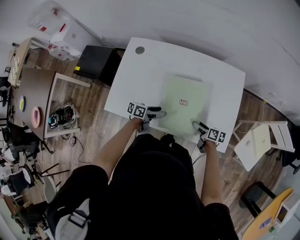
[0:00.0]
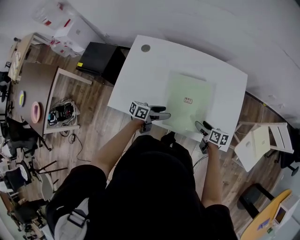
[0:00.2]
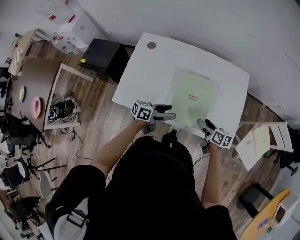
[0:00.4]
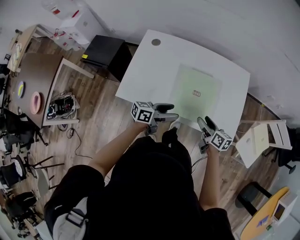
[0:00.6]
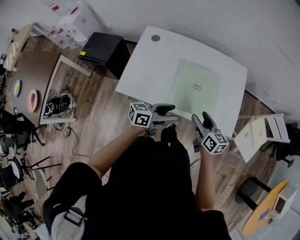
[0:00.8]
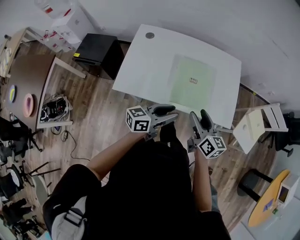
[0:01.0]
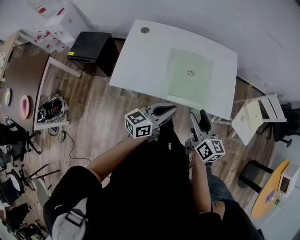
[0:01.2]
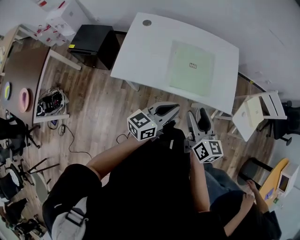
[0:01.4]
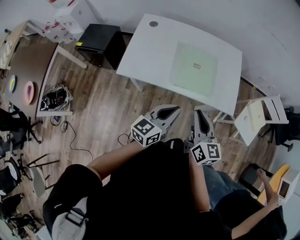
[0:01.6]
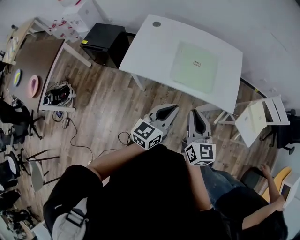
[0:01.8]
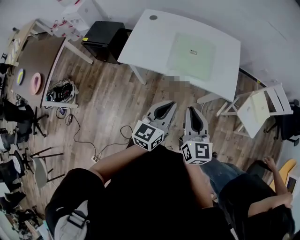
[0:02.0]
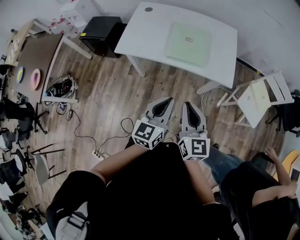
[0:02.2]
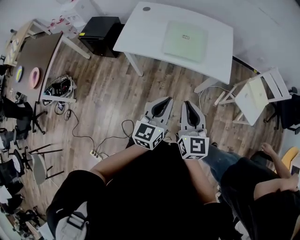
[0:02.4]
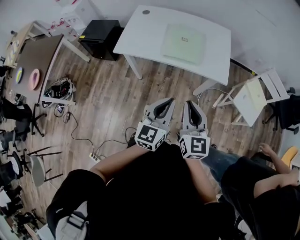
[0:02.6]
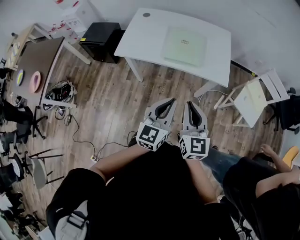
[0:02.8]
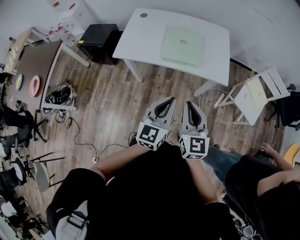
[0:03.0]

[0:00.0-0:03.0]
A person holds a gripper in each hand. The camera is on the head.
0:00.0 to 0:01.6: The left gripper is displaced backward and upward by approximately 35 cm, changes its angle by some 40 degrees, and closes its fingers. The right gripper is displaced upward and backward by about 40 cm, turns by some 50 degrees, and closes.
0:01.6 to 0:03.0: The left gripper moves backward and to the right, approximately 15 cm, and rotates approximately 20 degrees; the right gripper goes approximately 15 cm backward.

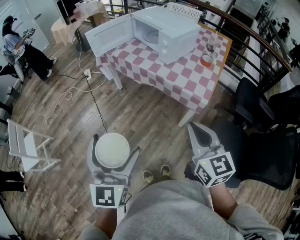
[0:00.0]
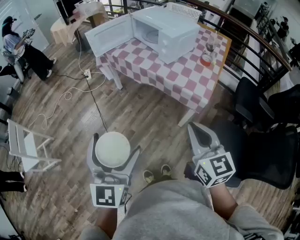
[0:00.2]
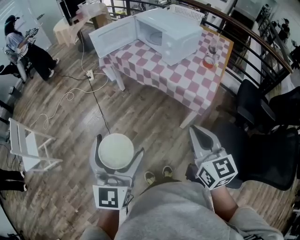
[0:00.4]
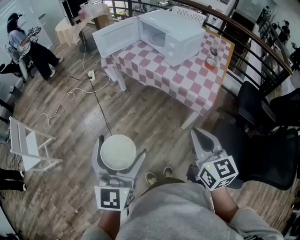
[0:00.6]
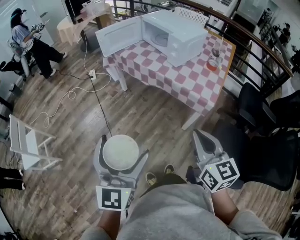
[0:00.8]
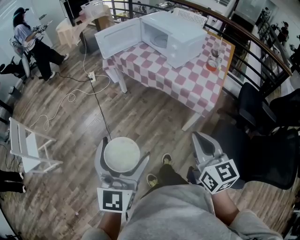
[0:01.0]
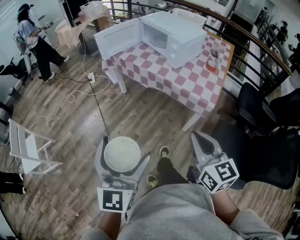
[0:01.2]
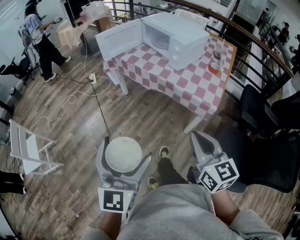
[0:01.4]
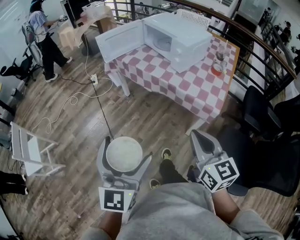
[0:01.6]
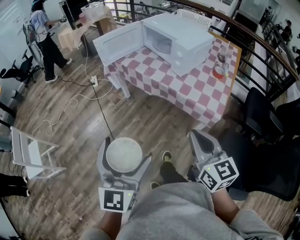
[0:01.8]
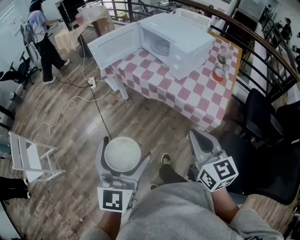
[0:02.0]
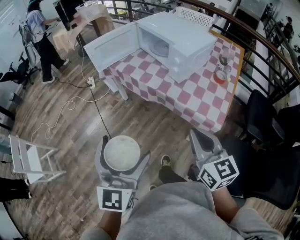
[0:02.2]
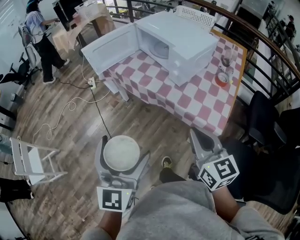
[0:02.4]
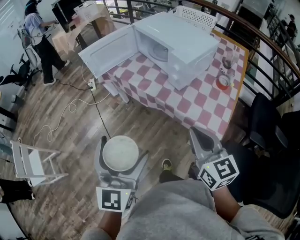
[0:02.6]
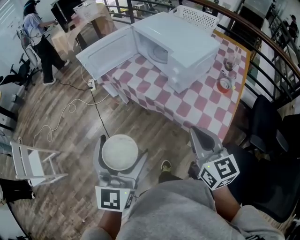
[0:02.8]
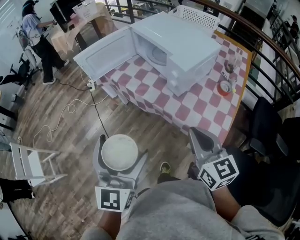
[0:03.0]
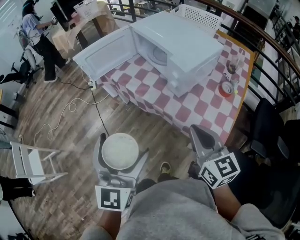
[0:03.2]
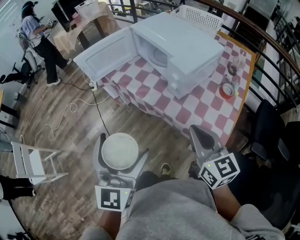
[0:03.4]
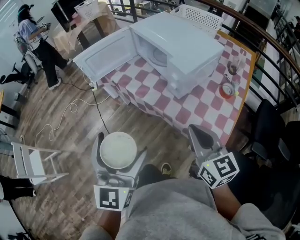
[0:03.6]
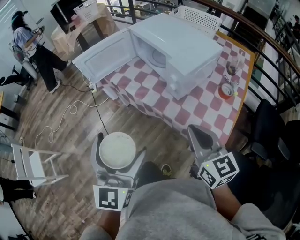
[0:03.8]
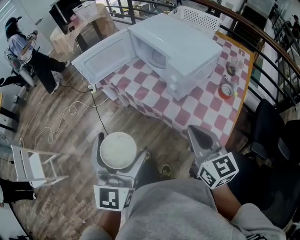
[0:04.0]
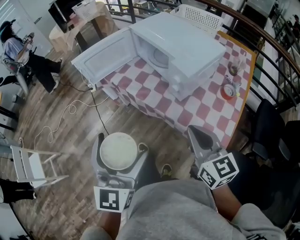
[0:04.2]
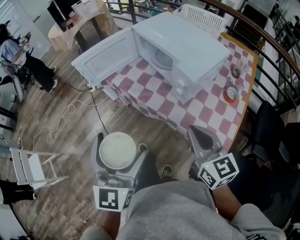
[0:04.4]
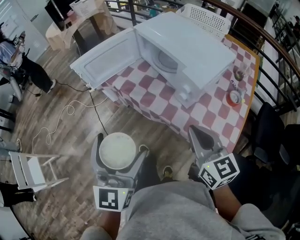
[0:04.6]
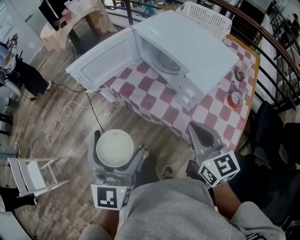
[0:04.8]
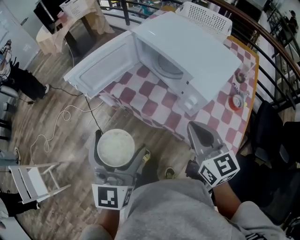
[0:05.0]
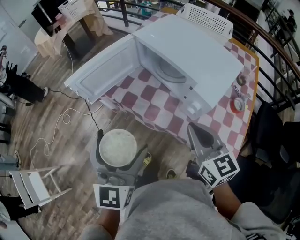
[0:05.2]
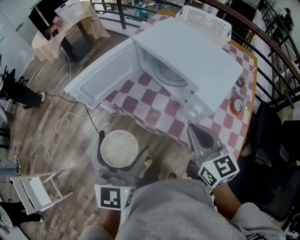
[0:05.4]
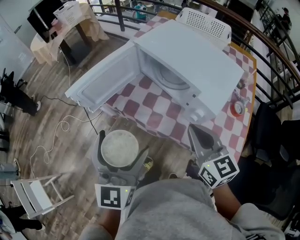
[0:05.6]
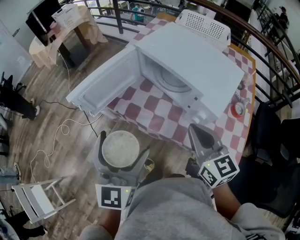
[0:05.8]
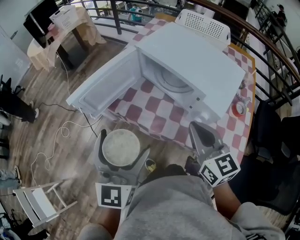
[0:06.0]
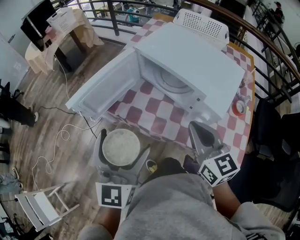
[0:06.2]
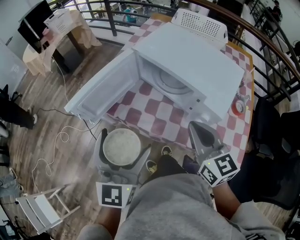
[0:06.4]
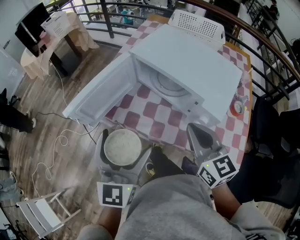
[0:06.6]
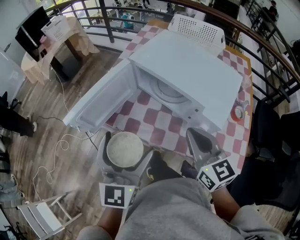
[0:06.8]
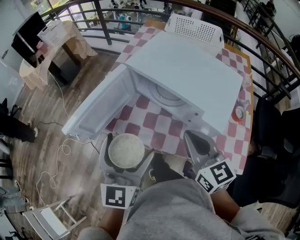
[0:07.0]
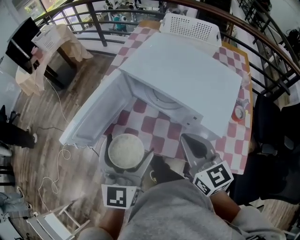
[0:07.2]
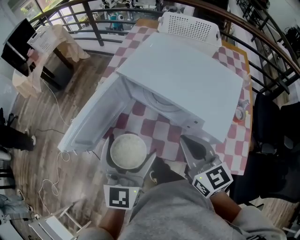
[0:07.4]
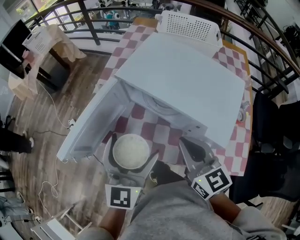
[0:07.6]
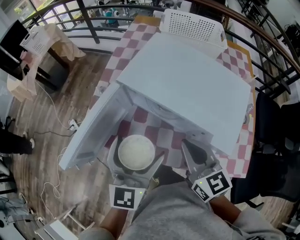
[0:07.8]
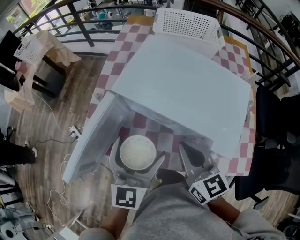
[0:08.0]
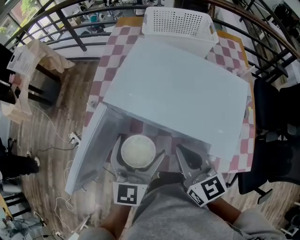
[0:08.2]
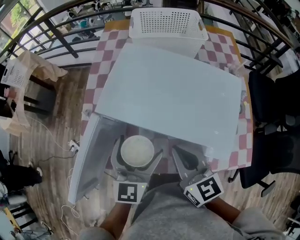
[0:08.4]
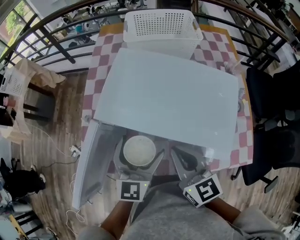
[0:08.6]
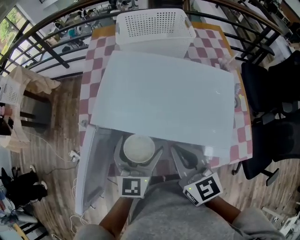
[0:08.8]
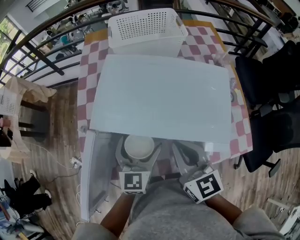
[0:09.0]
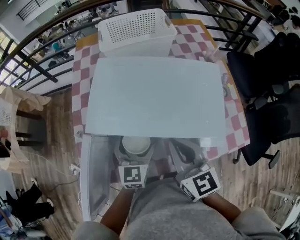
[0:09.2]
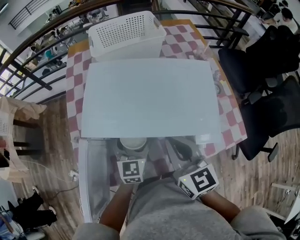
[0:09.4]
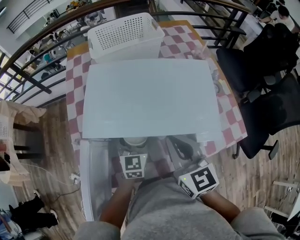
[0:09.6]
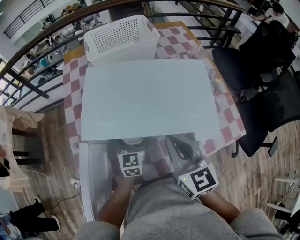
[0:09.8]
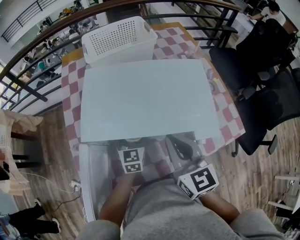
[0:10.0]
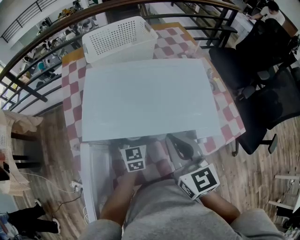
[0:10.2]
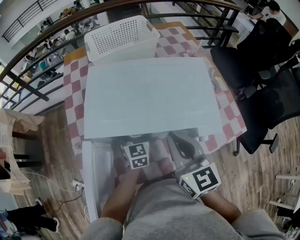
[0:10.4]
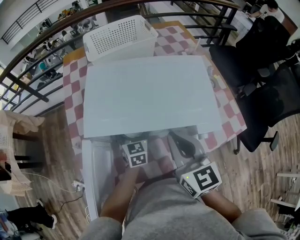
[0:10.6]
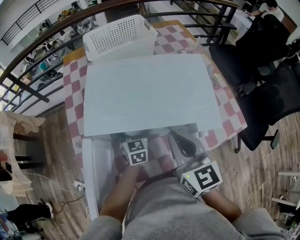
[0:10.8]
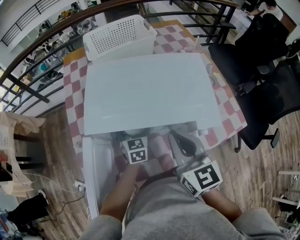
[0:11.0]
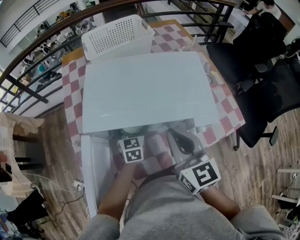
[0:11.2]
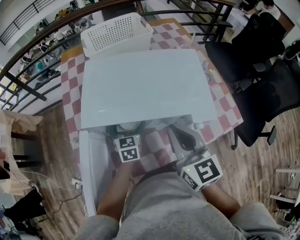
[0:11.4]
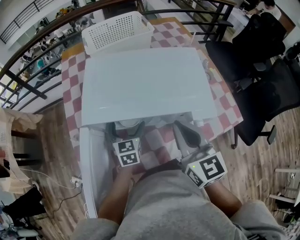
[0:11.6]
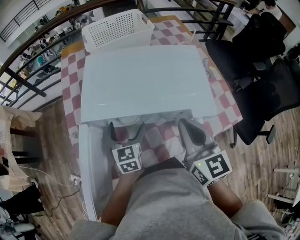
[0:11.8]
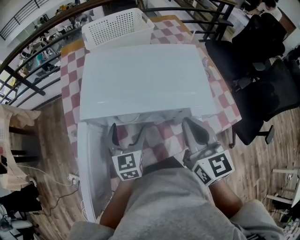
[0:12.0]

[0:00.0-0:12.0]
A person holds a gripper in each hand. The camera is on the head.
0:00.0 to 0:01.6: The right gripper shifts about 5 cm to the left.
0:01.6 to 0:03.0: Both grippers travel together forward, some 25 cm.
0:03.0 to 0:04.4: The grippers both shift forward by roughly 5 cm.
0:04.4 to 0:06.0: The right gripper is displaced forward and to the left by roughly 20 cm. The left gripper is displaced forward by about 20 cm.
0:06.0 to 0:07.6: The left gripper travels forward by some 15 cm. Meanwhile the right gripper shifts roughly 10 cm forward.
0:07.6 to 0:09.0: The right gripper moves forward, approximately 5 cm, and rotates roughly 20 degrees. The left gripper travels forward and downward by some 15 cm, and turns by approximately 20 degrees.
0:09.0 to 0:10.4: The left gripper heads downward and forward, covering roughly 10 cm.
0:10.4 to 0:12.0: The left gripper travels backward and upward by about 10 cm, while the right gripper is displaced to the right by roughly 5 cm.

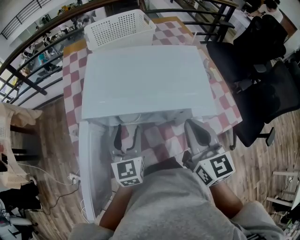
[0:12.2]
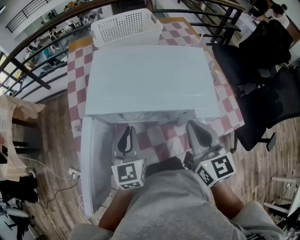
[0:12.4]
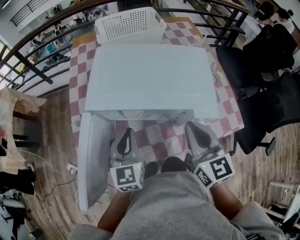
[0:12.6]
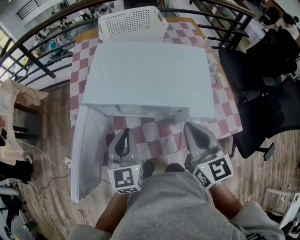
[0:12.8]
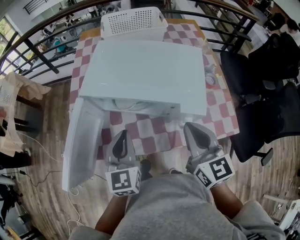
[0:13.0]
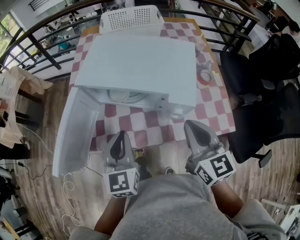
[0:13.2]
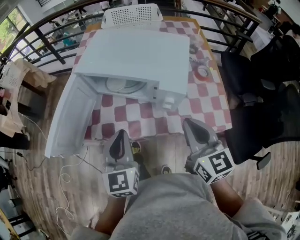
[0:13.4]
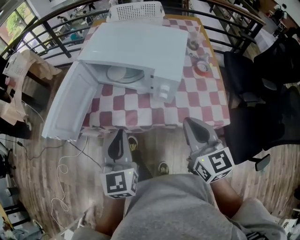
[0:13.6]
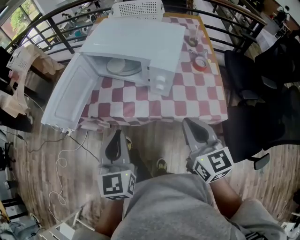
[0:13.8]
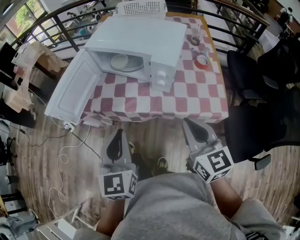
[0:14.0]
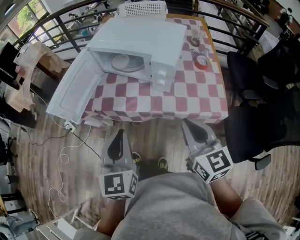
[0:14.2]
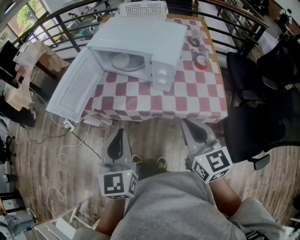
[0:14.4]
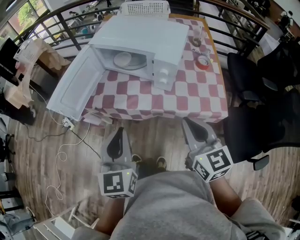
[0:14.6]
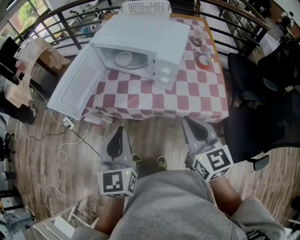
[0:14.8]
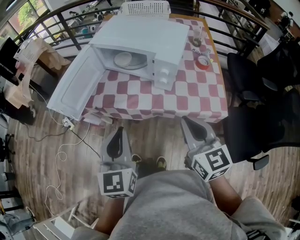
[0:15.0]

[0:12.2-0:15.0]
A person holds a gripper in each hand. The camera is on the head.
0:12.2 to 0:13.6: The left gripper goes roughly 25 cm backward, and closes, while the right gripper travels backward and to the right by about 20 cm, and swivels approximately 20 degrees.
0:13.6 to 0:15.0: Both grippers move backward, some 10 cm.

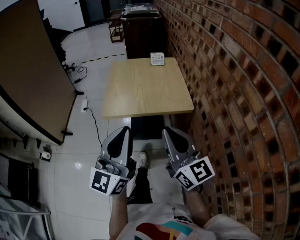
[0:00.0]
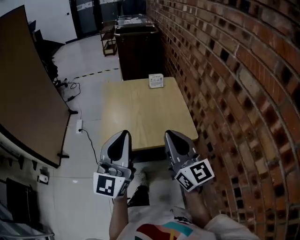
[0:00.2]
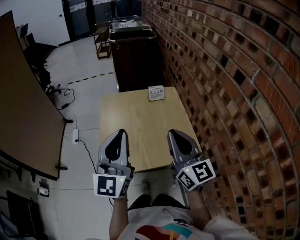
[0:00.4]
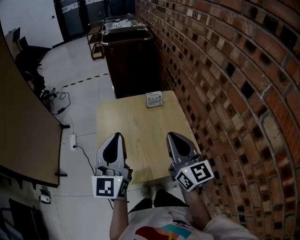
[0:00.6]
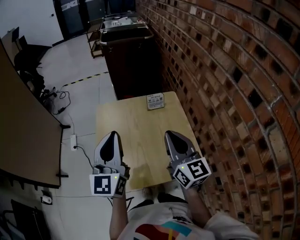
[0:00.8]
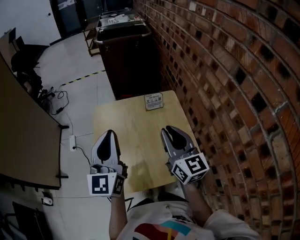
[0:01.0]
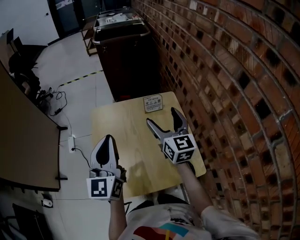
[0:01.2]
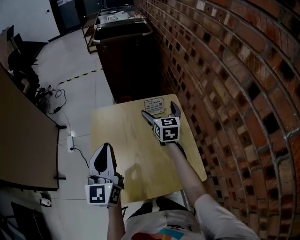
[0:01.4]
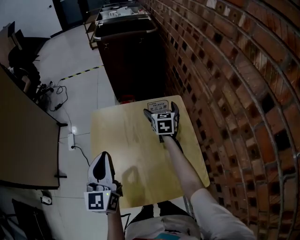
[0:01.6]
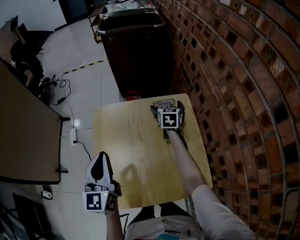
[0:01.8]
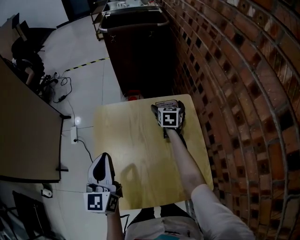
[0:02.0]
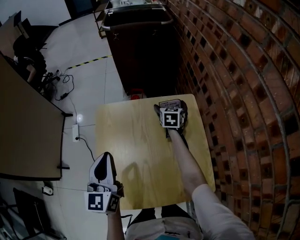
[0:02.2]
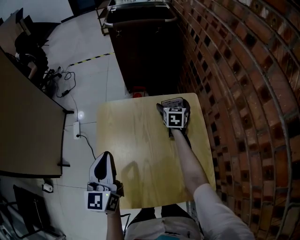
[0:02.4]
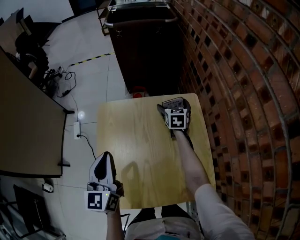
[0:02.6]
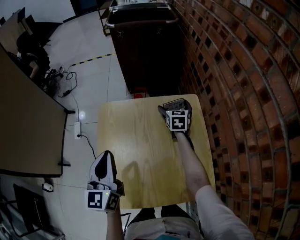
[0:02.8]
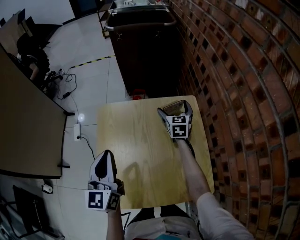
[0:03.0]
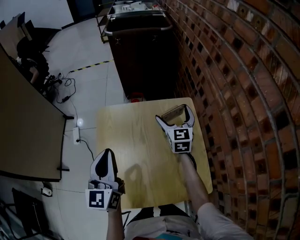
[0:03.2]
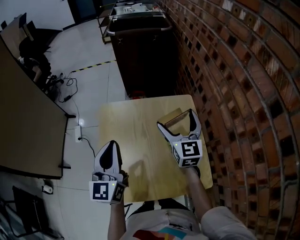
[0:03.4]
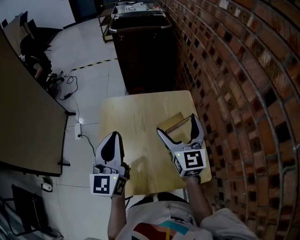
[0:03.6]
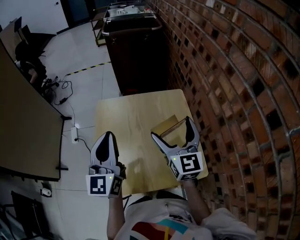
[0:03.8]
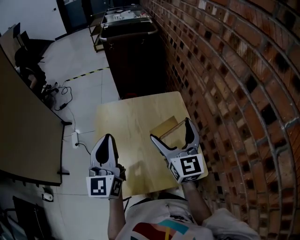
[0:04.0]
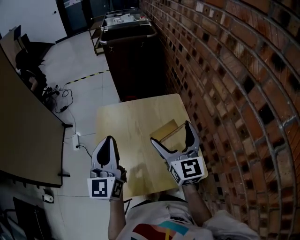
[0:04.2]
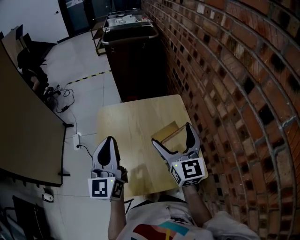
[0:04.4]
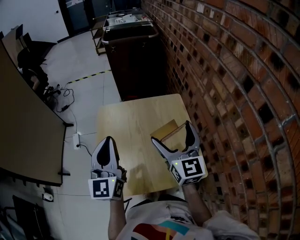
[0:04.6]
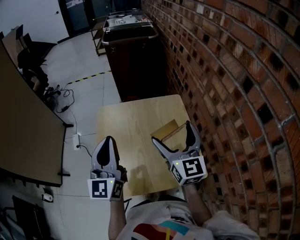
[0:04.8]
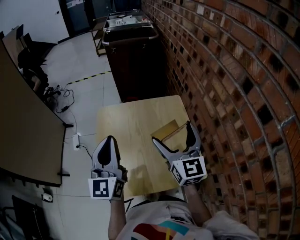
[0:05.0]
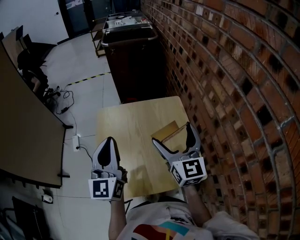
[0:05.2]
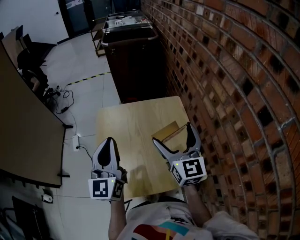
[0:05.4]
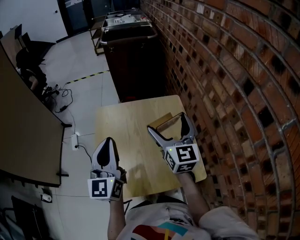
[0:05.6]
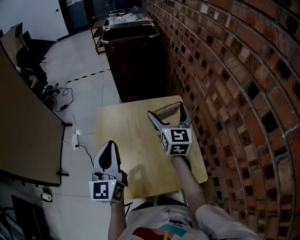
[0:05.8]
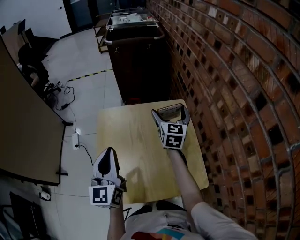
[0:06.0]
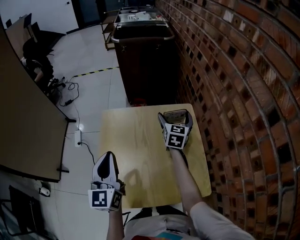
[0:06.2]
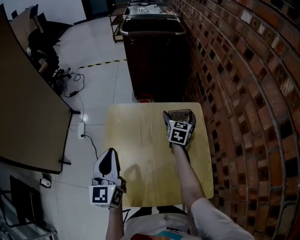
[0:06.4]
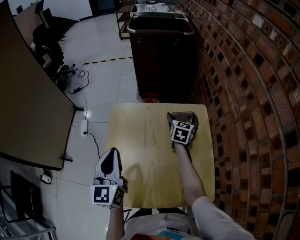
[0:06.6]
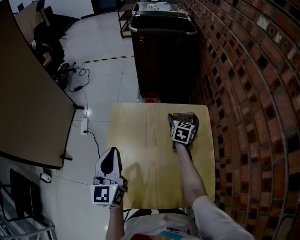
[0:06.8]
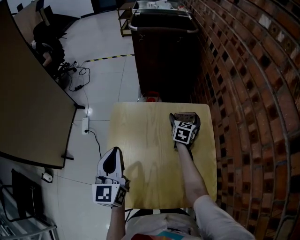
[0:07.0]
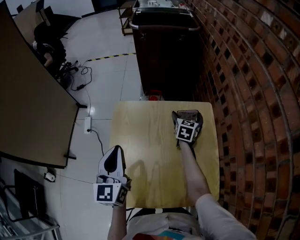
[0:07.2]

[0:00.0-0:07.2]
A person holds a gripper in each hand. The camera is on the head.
0:00.0 to 0:01.4: The two grippers travel together, forward, roughly 60 cm. The left gripper swivels roughly 20 degrees. Meanwhile the right gripper changes its angle by about 40 degrees, and opens.
0:01.4 to 0:02.8: The left gripper moves downward, approximately 5 cm; the right gripper goes roughly 20 cm downward and forward.
0:02.8 to 0:04.4: The right gripper is displaced backward and upward by some 40 cm, and angles its fingers upward, by roughly 30 degrees. The left gripper goes approximately 10 cm upward and backward.
0:04.4 to 0:05.8: The right gripper shifts roughly 15 cm forward.
0:05.8 to 0:07.2: The left gripper travels to the left, downward and forward by about 10 cm; the right gripper goes approximately 30 cm downward and forward, and swivels about 30 degrees.
